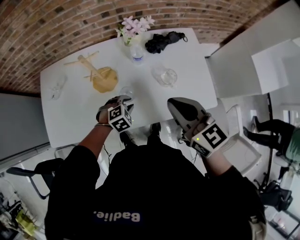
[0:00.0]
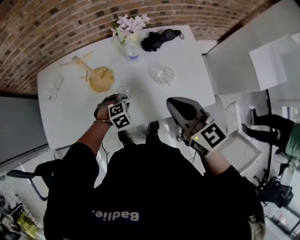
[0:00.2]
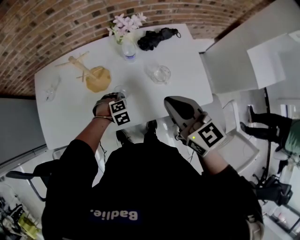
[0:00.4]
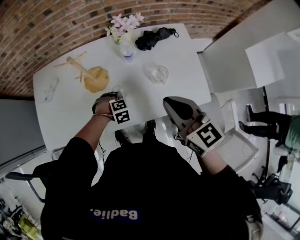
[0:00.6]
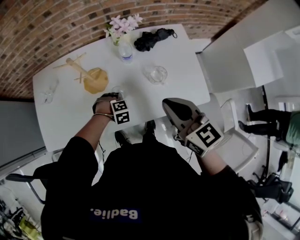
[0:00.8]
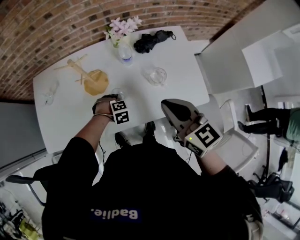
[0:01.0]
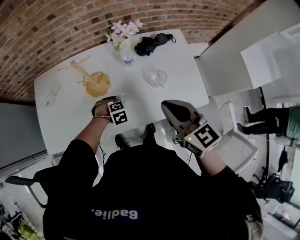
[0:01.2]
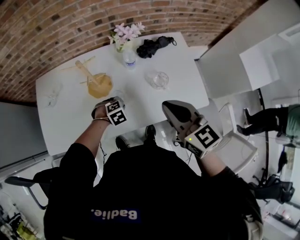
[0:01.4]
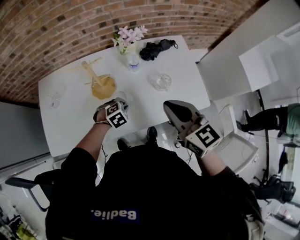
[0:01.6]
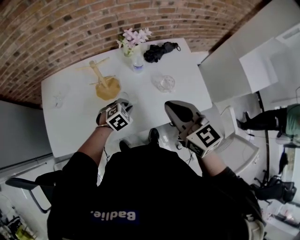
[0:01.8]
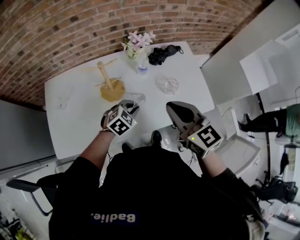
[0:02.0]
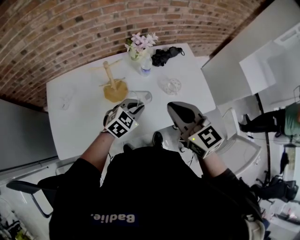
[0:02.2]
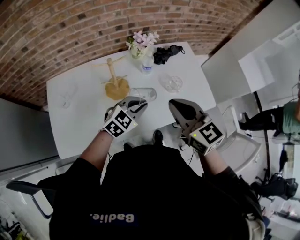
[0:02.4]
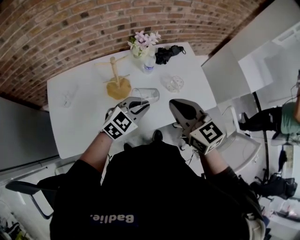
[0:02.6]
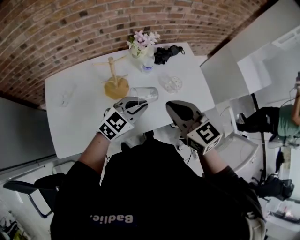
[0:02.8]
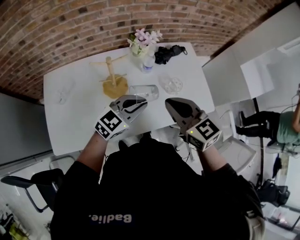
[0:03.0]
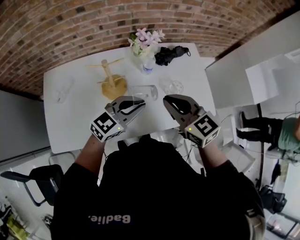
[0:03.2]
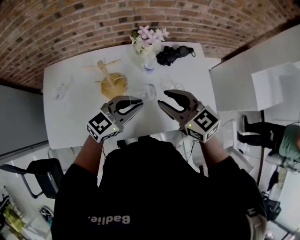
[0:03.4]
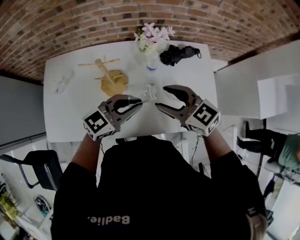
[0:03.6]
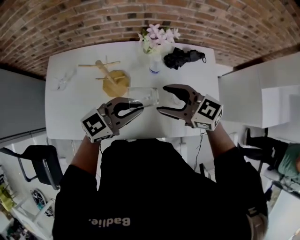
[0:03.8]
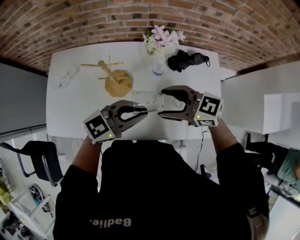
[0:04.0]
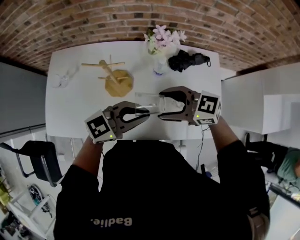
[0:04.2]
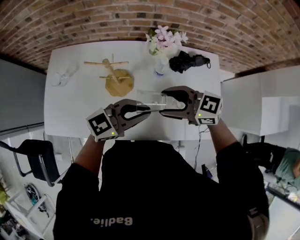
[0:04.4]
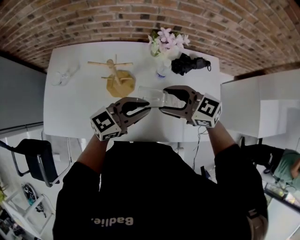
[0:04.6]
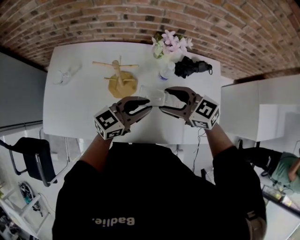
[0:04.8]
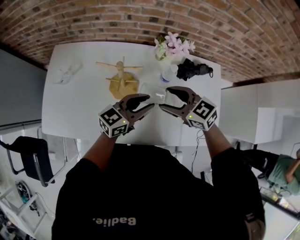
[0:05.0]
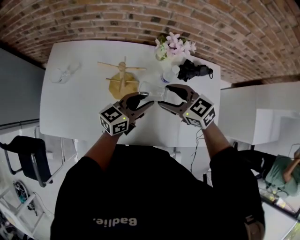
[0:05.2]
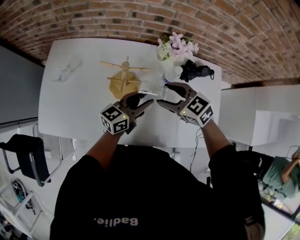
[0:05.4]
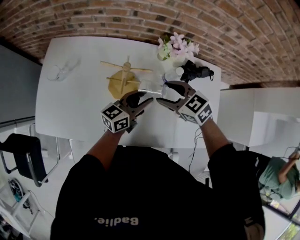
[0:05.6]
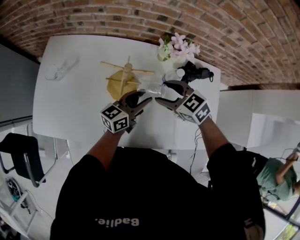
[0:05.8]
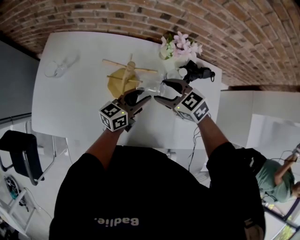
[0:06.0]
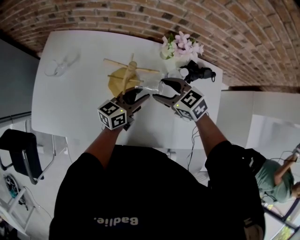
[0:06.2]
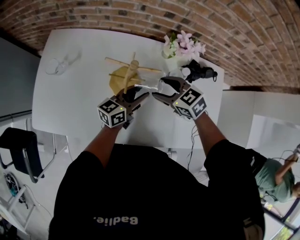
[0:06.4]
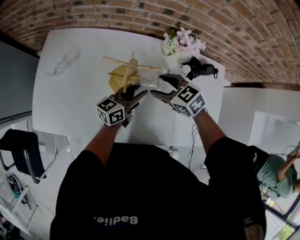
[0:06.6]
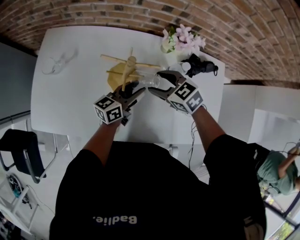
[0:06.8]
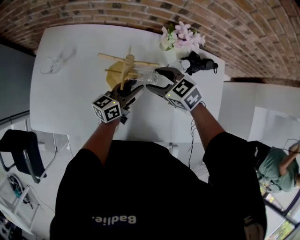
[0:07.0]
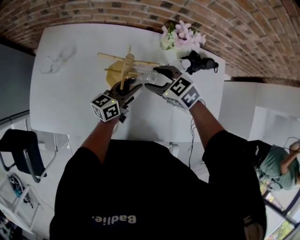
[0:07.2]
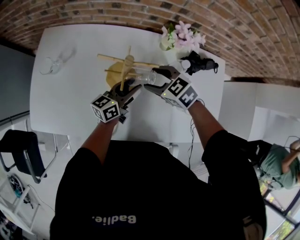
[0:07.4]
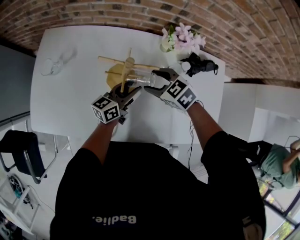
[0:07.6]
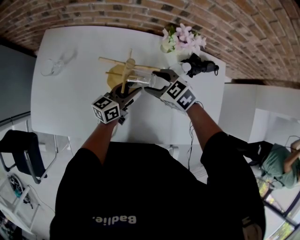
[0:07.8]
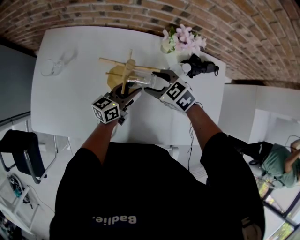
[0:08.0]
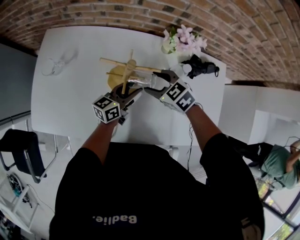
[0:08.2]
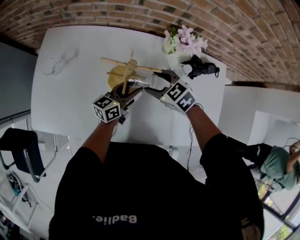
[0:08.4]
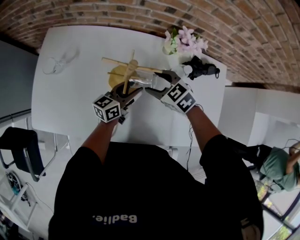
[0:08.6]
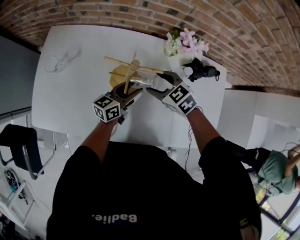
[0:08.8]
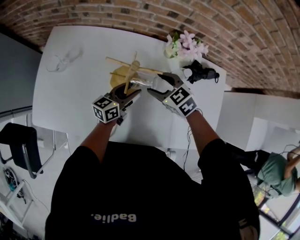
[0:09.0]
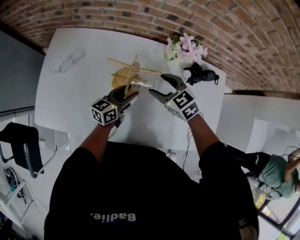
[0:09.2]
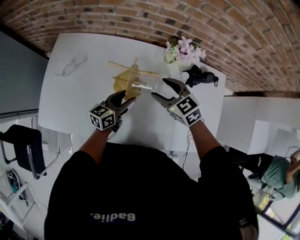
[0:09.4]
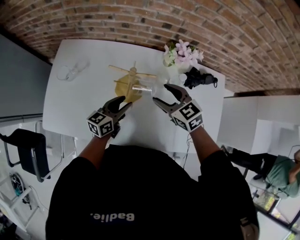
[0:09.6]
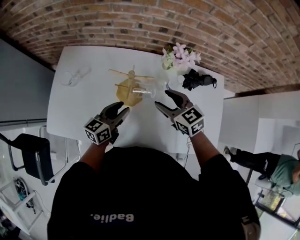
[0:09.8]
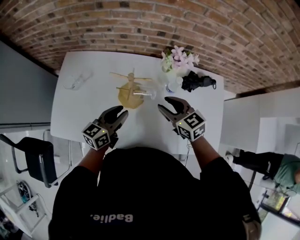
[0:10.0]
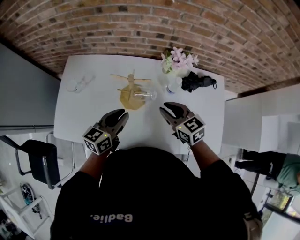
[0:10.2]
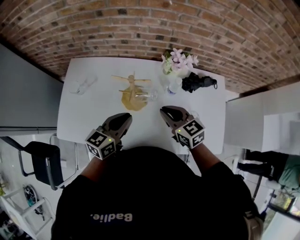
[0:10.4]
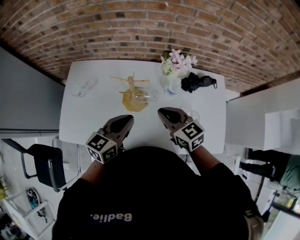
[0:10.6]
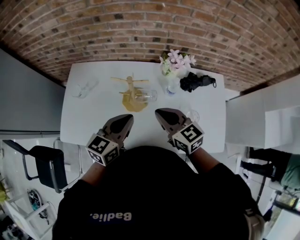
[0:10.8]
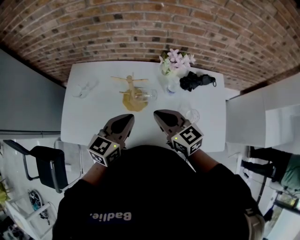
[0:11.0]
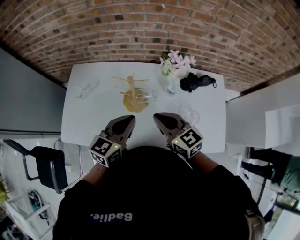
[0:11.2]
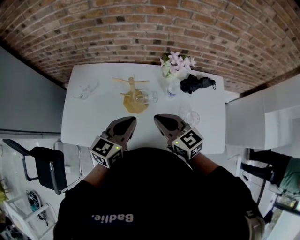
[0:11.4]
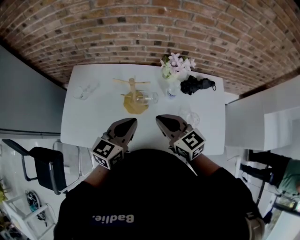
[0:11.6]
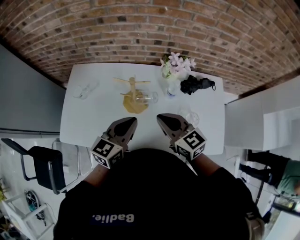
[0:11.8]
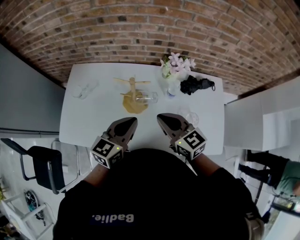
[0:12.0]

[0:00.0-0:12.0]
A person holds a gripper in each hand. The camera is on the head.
0:01.6 to 0:03.0: The right gripper shifts roughly 10 cm to the left; the left gripper travels upward by roughly 20 cm, and points its fingers about 50 degrees further upward.
0:03.0 to 0:04.4: The left gripper shifts by roughly 5 cm; the right gripper changes place by roughly 15 cm, turns by roughly 50 degrees, and opens up.
0:04.4 to 0:06.0: The left gripper travels downward by about 15 cm, rotates approximately 40 degrees, and opens its fingers; the right gripper ends up roughly 15 cm from where it was, and changes its angle by roughly 30 degrees.
0:06.0 to 0:07.6: The left gripper changes place by about 5 cm. Meanwhile the right gripper moves approximately 5 cm.
0:07.6 to 0:09.0: The grippers make only small movements.
0:09.0 to 0:10.4: Both grippers move upward and backward, approximately 15 cm. The right gripper swivels about 30 degrees, and closes up. Meanwhile the left gripper closes its fingers.
0:10.4 to 0:12.0: The right gripper travels upward by roughly 5 cm; the left gripper changes place by about 5 cm.

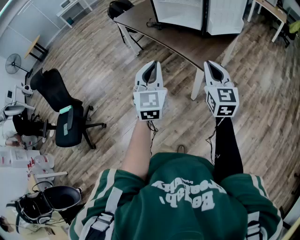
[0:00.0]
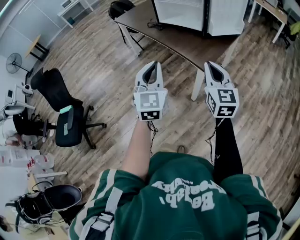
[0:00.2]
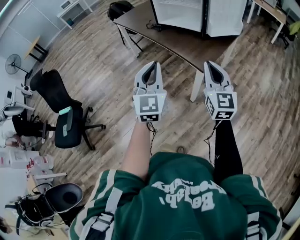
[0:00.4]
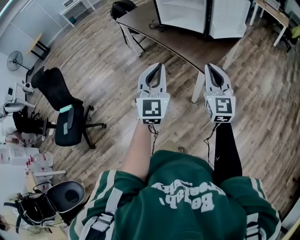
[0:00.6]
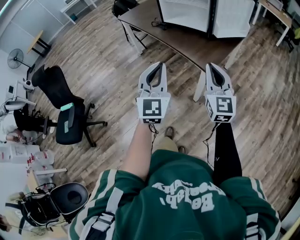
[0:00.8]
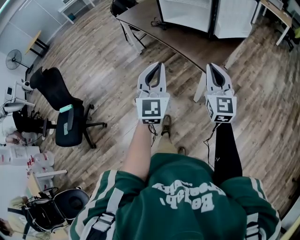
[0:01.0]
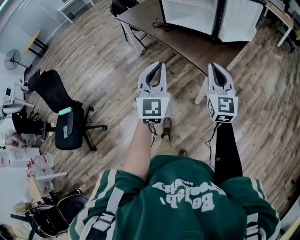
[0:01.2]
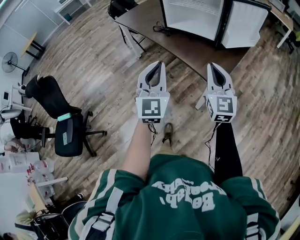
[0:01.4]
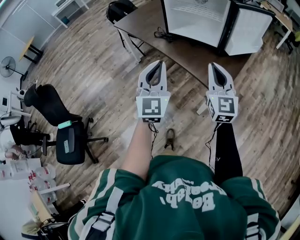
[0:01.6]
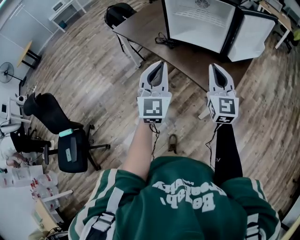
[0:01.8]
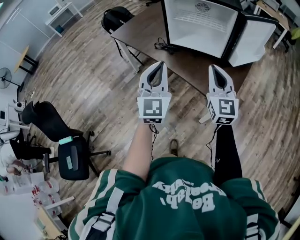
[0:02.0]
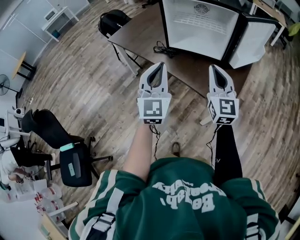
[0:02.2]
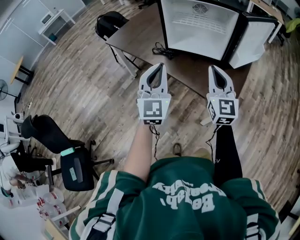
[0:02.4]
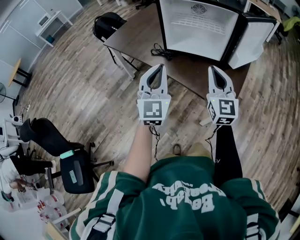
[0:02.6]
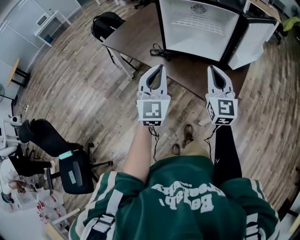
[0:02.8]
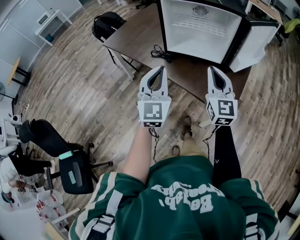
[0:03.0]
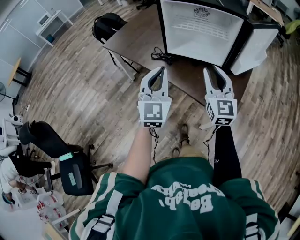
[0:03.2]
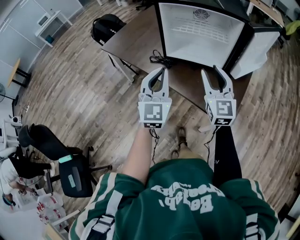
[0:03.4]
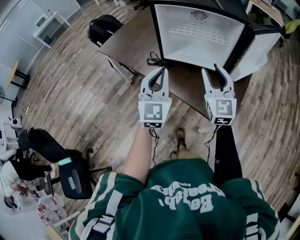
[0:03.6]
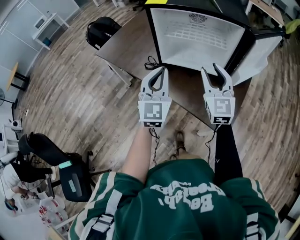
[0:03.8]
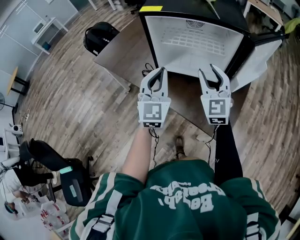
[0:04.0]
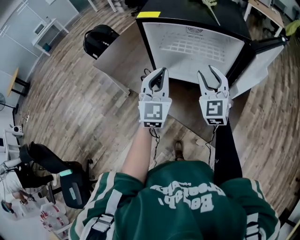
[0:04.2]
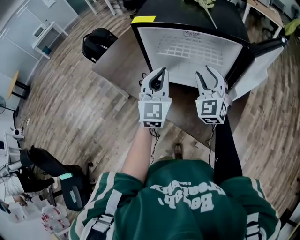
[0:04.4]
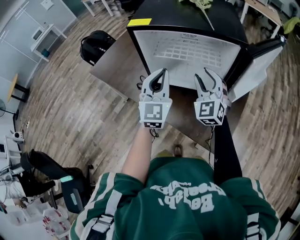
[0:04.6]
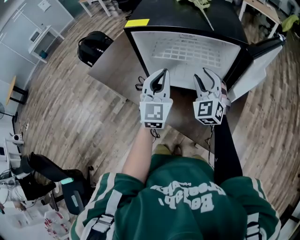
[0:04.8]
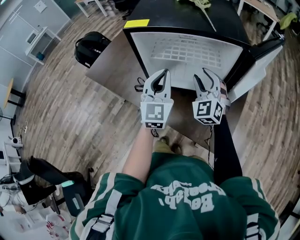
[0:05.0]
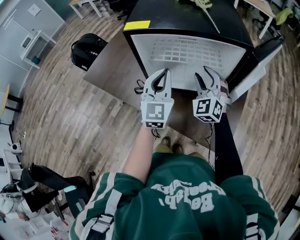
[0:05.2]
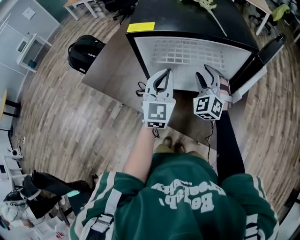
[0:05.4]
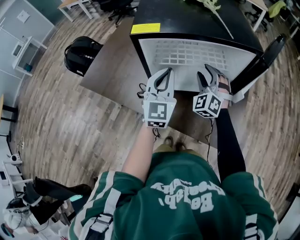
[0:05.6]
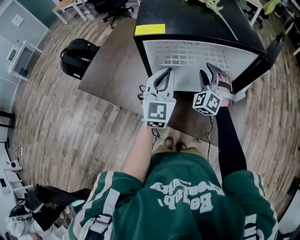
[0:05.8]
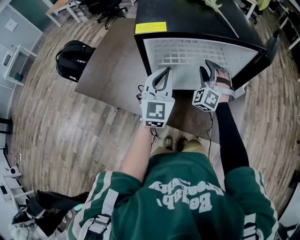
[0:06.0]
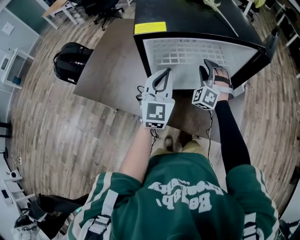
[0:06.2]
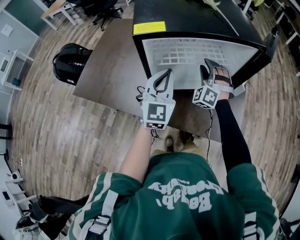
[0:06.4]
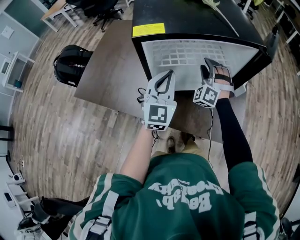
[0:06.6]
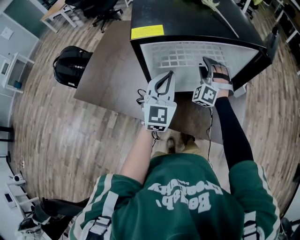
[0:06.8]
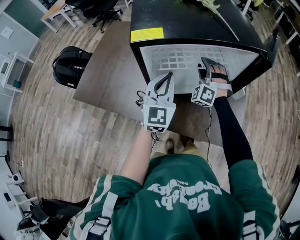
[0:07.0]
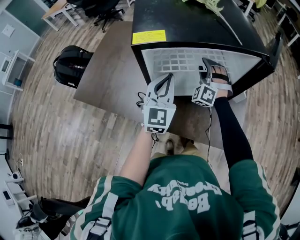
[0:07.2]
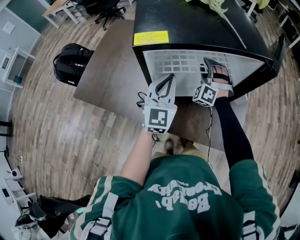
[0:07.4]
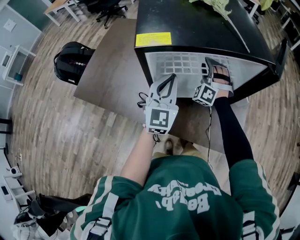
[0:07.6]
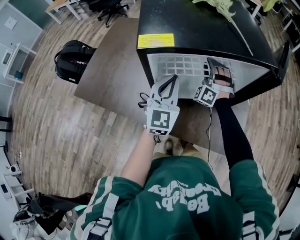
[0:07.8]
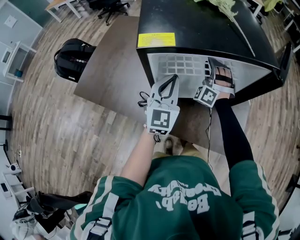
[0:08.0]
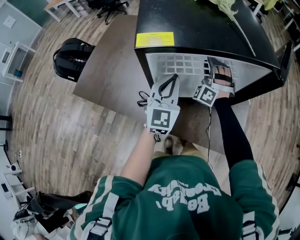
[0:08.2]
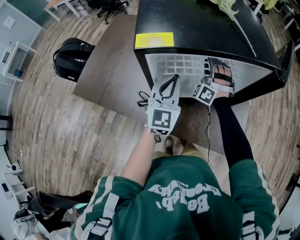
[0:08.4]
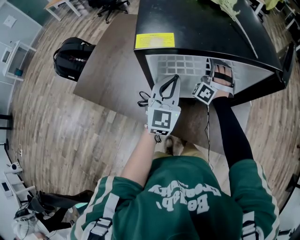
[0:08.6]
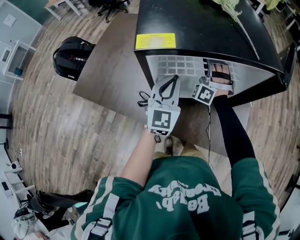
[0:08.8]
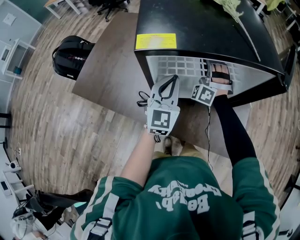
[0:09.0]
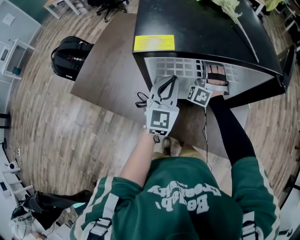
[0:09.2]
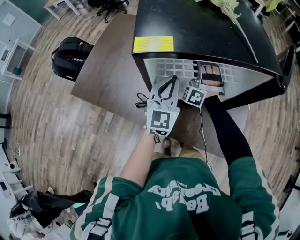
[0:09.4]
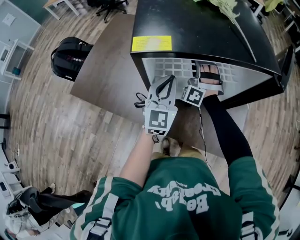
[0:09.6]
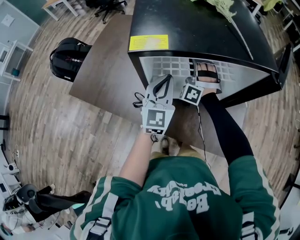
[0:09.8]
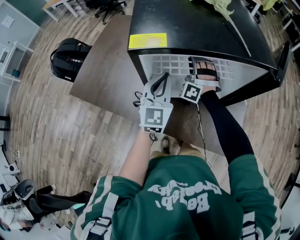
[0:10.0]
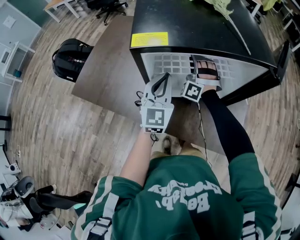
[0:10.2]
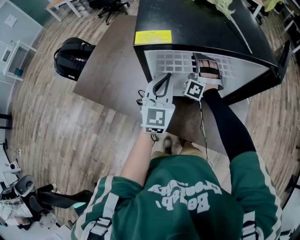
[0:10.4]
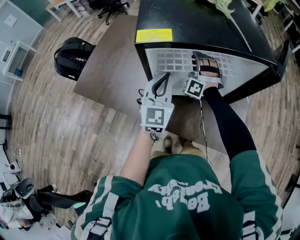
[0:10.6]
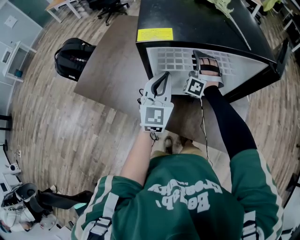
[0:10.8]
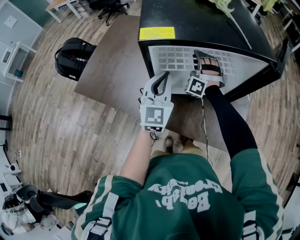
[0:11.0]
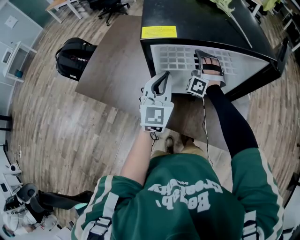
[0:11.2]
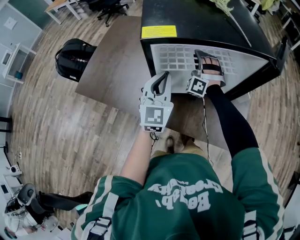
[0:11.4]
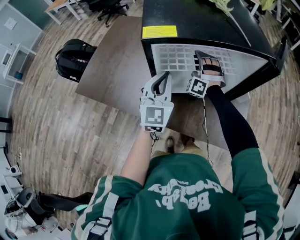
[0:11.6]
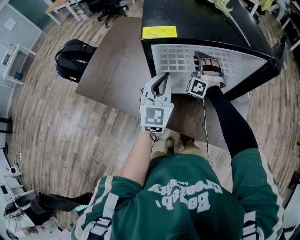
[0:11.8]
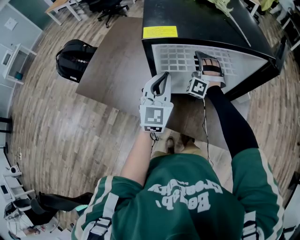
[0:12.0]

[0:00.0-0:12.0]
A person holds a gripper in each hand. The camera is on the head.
0:00.0 to 0:01.6: The left gripper travels forward by some 20 cm. The right gripper moves forward and to the left, approximately 20 cm.
0:01.6 to 0:03.0: The two grippers go approximately 15 cm forward.
0:03.0 to 0:04.4: The grippers both shift forward by about 20 cm. The right gripper turns by roughly 30 degrees, and opens up.
0:04.4 to 0:06.0: The right gripper travels forward and downward by approximately 15 cm, and turns by approximately 40 degrees, while the left gripper travels forward by about 10 cm.
0:06.0 to 0:07.6: The right gripper is displaced forward by approximately 10 cm.
0:07.6 to 0:09.0: The grippers make only small movements.
0:09.0 to 0:12.0: The grippers stay close to where they were, moving slightly.
